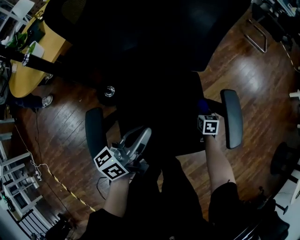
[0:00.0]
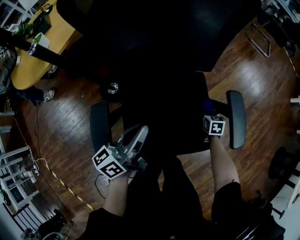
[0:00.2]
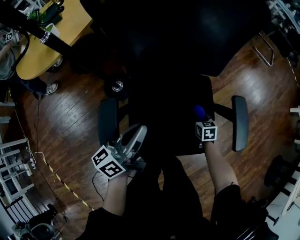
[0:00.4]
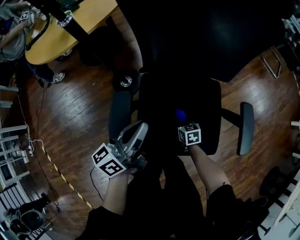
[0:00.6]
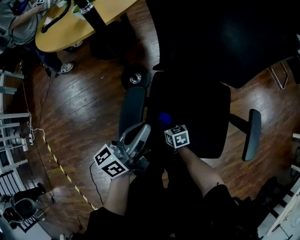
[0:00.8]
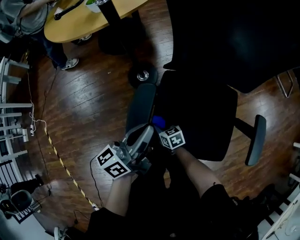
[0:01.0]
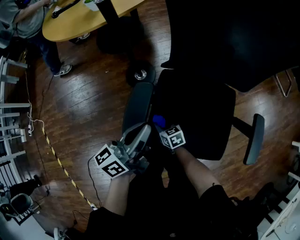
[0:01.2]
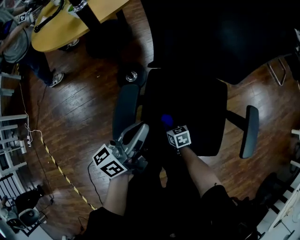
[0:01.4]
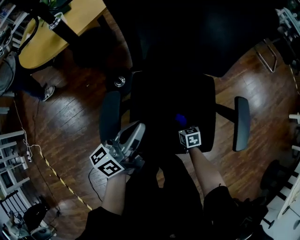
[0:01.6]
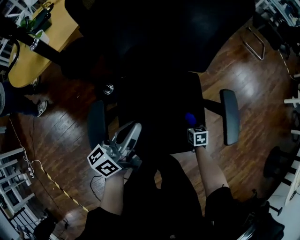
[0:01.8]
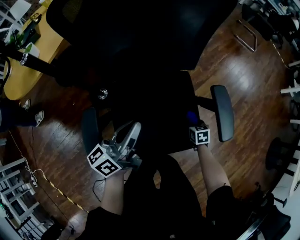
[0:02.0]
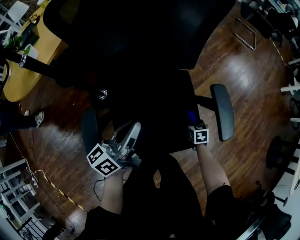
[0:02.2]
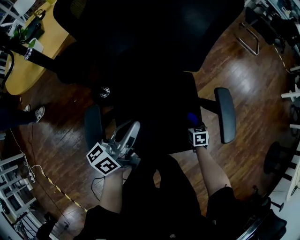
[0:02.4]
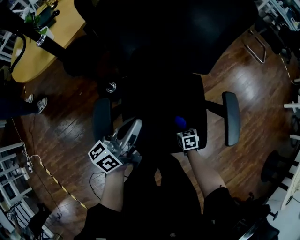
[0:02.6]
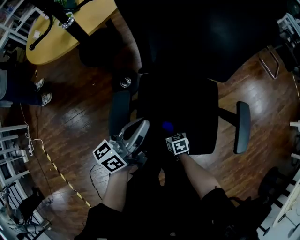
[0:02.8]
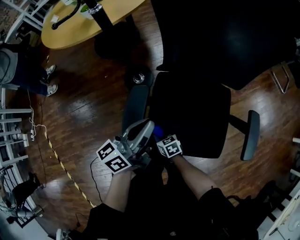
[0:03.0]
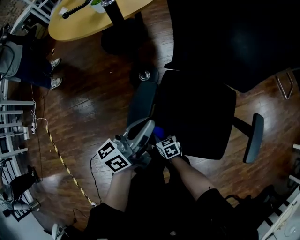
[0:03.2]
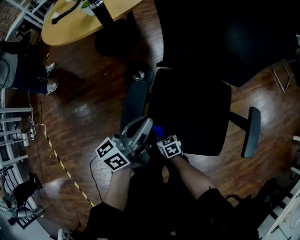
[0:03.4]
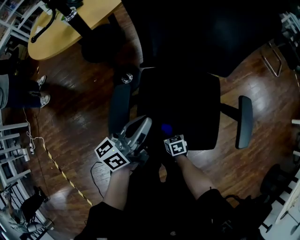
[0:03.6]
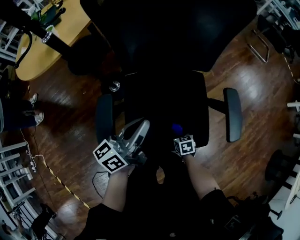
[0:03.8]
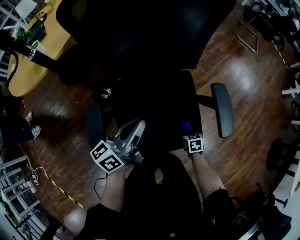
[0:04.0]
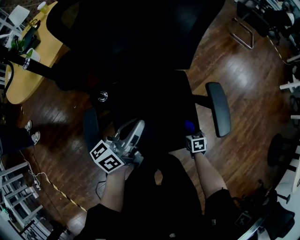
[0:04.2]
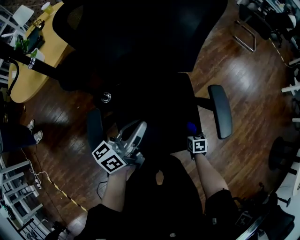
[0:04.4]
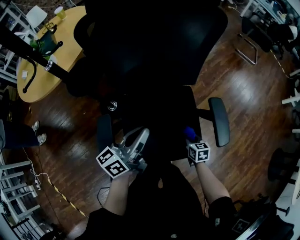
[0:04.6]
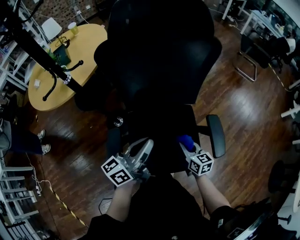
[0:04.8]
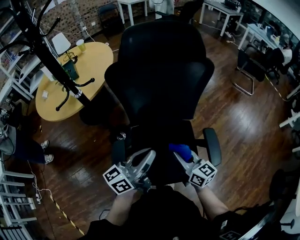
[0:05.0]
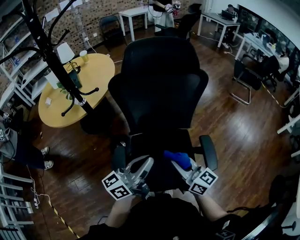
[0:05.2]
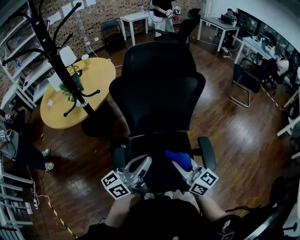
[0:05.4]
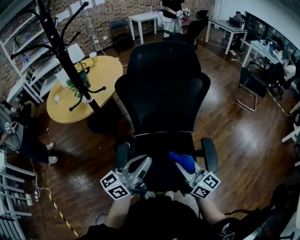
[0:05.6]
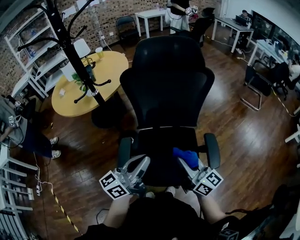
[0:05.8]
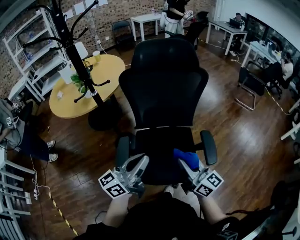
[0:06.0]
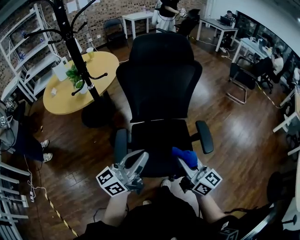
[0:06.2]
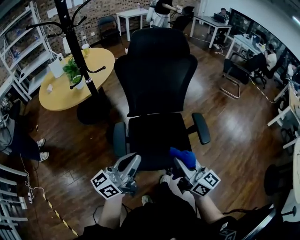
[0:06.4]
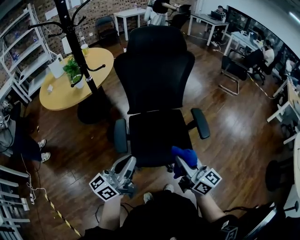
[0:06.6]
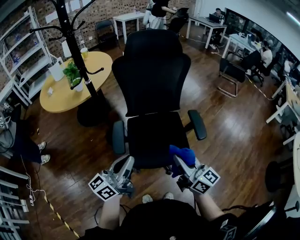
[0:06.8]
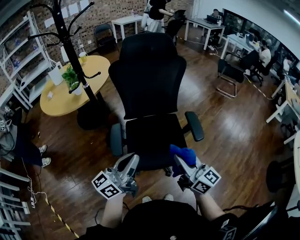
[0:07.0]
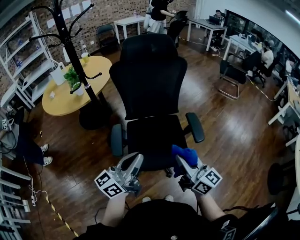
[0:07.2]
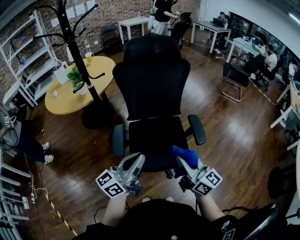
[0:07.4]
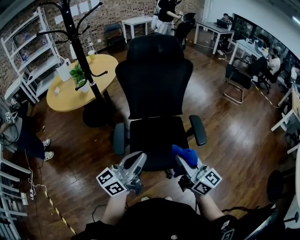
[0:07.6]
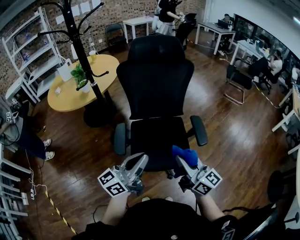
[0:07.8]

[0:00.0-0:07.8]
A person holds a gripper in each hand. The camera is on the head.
0:00.0 to 0:01.6: The right gripper rotates roughly 20 degrees.
0:01.6 to 0:03.2: The left gripper changes place by about 5 cm, while the right gripper moves some 25 cm, and swivels approximately 20 degrees.
0:03.2 to 0:04.6: The right gripper changes place by roughly 35 cm, and rotates roughly 40 degrees; the left gripper moves about 15 cm, and changes its angle by approximately 20 degrees.
0:04.6 to 0:06.2: The right gripper goes about 40 cm upward, and tilts its fingers approximately 50 degrees upward, while the left gripper travels upward and backward by about 25 cm, and rotates approximately 20 degrees.
0:06.2 to 0:07.8: Both grippers travel together backward, approximately 10 cm.

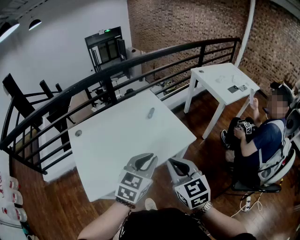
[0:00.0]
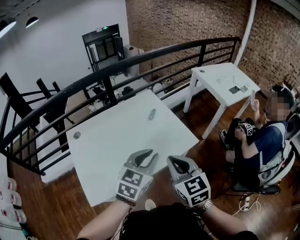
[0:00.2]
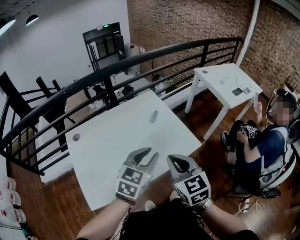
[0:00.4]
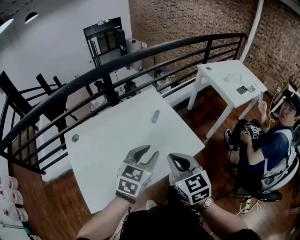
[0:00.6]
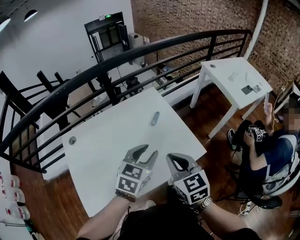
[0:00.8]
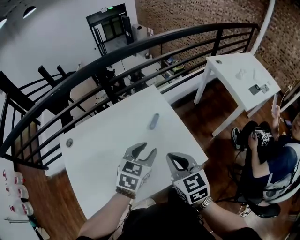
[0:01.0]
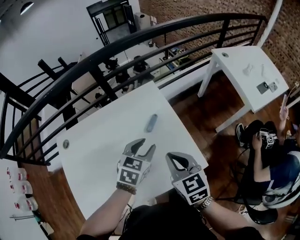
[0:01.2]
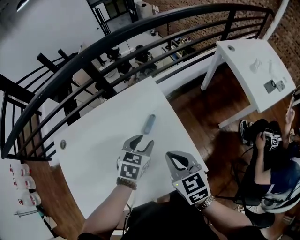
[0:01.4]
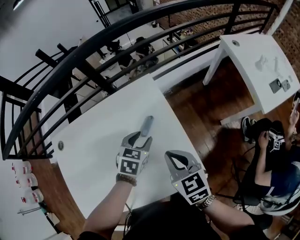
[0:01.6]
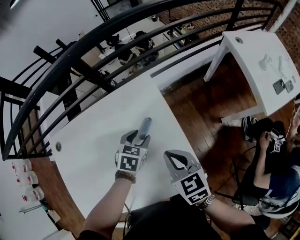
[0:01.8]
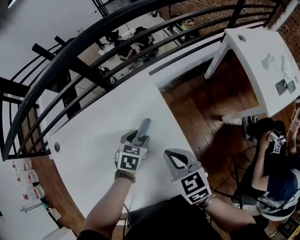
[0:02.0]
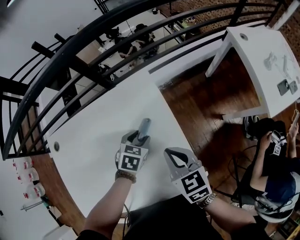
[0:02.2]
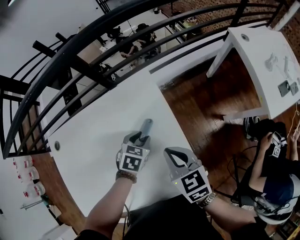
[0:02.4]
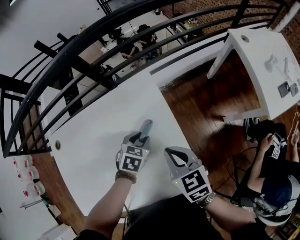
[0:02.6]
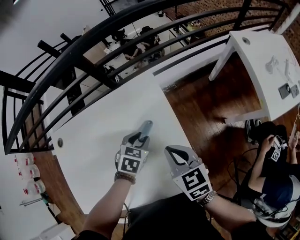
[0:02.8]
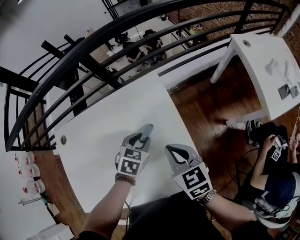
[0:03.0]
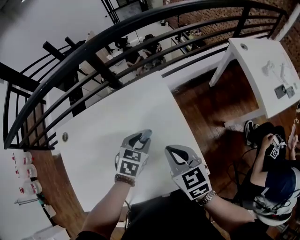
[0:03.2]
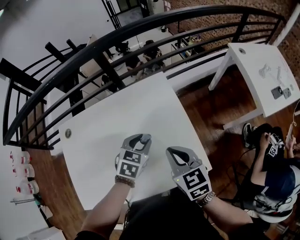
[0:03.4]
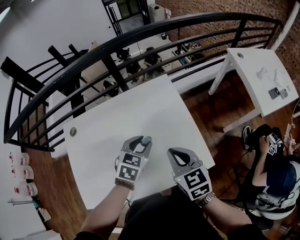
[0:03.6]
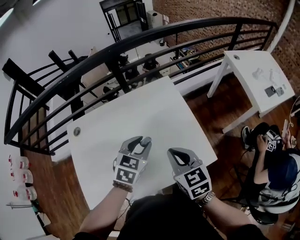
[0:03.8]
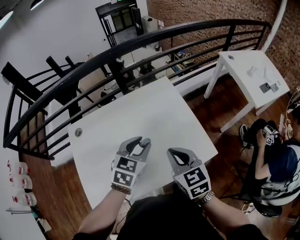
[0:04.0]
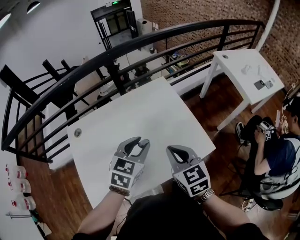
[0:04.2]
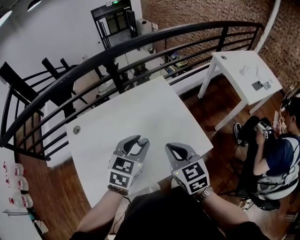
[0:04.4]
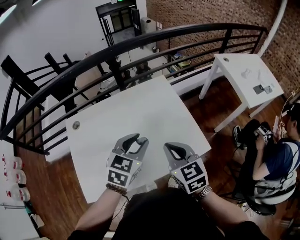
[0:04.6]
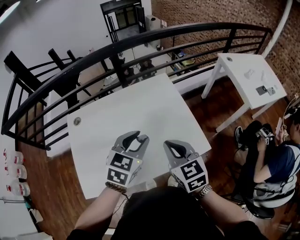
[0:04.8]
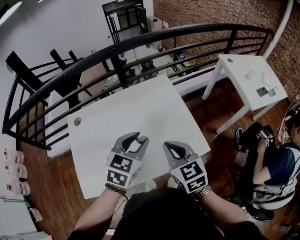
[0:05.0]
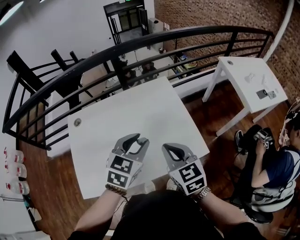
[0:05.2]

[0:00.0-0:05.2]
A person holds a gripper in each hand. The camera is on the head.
0:00.0 to 0:01.8: The two grippers go some 40 cm forward and downward. The right gripper changes its angle by some 30 degrees; the left gripper tips its fingers downward by roughly 30 degrees, and opens its fingers.
0:01.8 to 0:03.4: The left gripper moves backward and upward, approximately 10 cm. The right gripper ends up about 5 cm from where it was.
0:03.4 to 0:05.2: The left gripper shifts roughly 20 cm upward and backward; the right gripper is displaced backward, upward and to the left by about 15 cm.

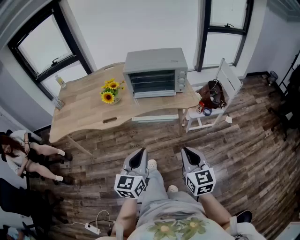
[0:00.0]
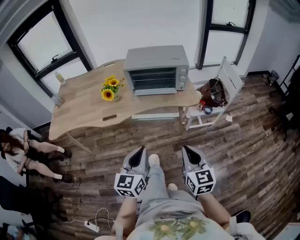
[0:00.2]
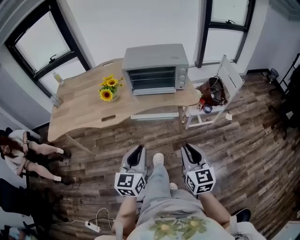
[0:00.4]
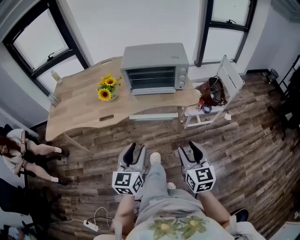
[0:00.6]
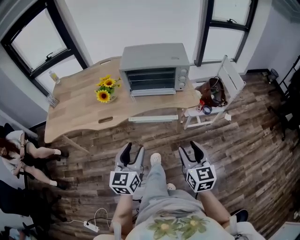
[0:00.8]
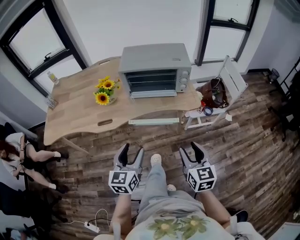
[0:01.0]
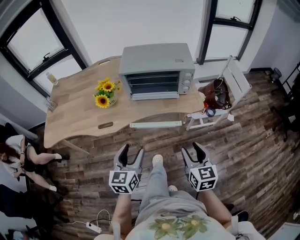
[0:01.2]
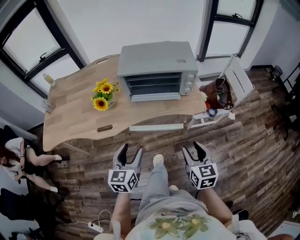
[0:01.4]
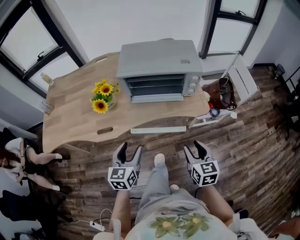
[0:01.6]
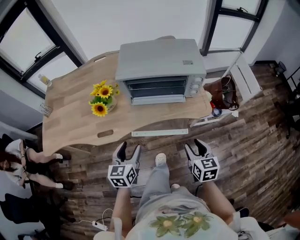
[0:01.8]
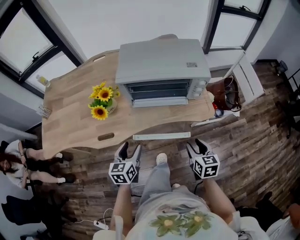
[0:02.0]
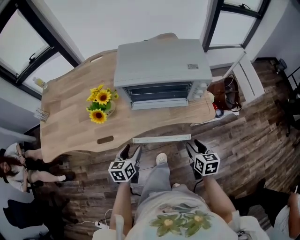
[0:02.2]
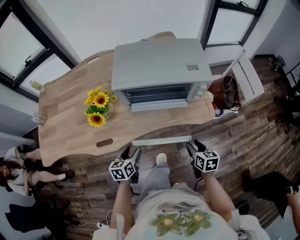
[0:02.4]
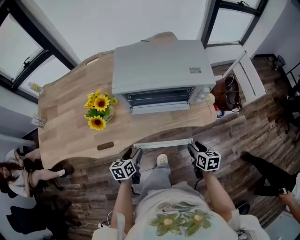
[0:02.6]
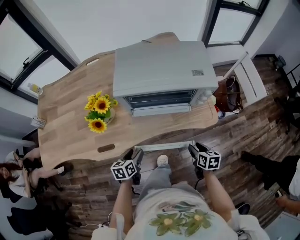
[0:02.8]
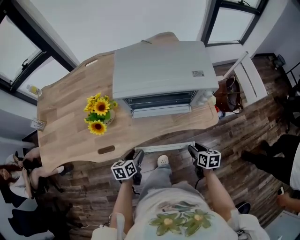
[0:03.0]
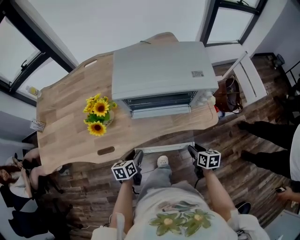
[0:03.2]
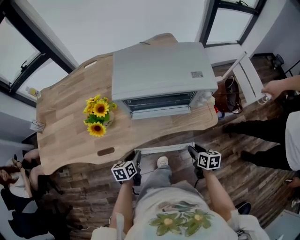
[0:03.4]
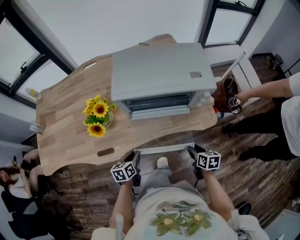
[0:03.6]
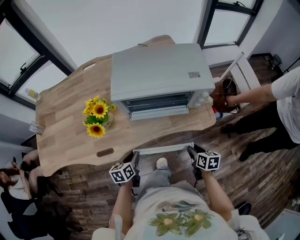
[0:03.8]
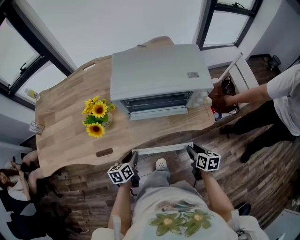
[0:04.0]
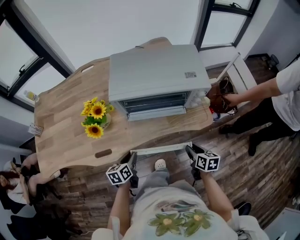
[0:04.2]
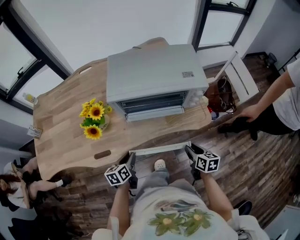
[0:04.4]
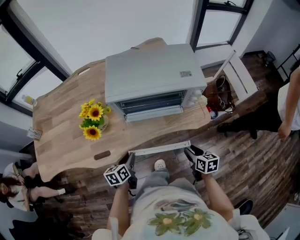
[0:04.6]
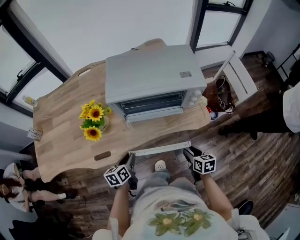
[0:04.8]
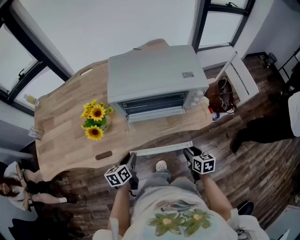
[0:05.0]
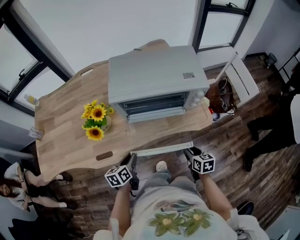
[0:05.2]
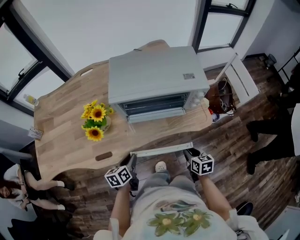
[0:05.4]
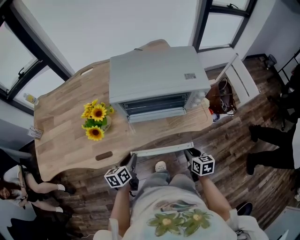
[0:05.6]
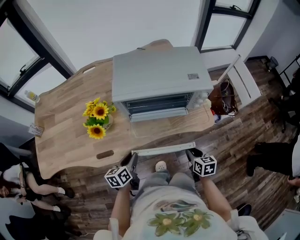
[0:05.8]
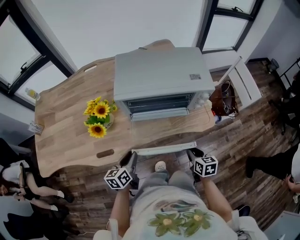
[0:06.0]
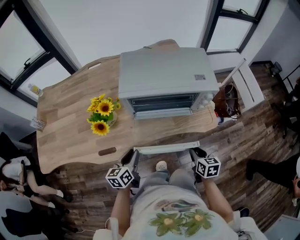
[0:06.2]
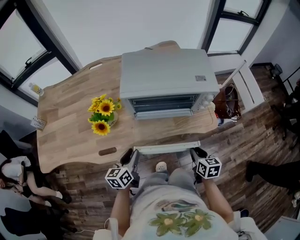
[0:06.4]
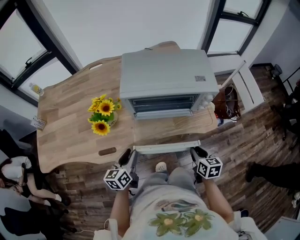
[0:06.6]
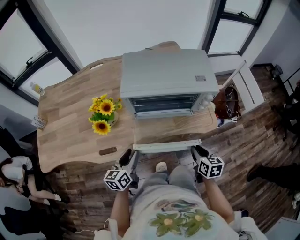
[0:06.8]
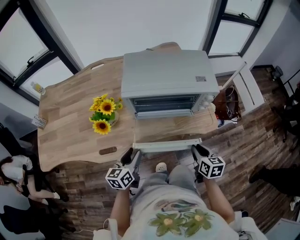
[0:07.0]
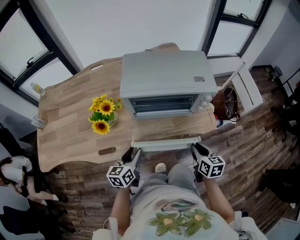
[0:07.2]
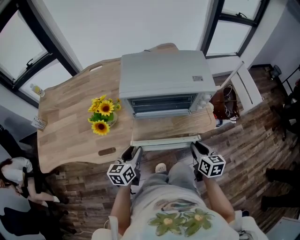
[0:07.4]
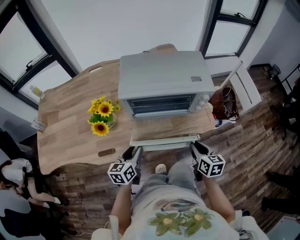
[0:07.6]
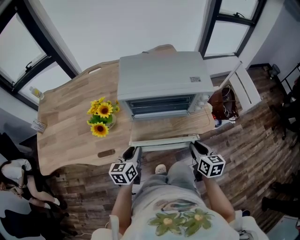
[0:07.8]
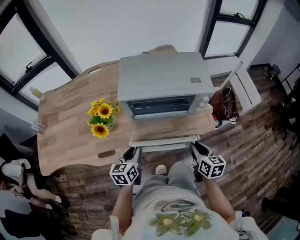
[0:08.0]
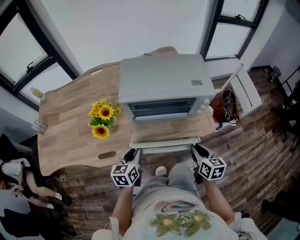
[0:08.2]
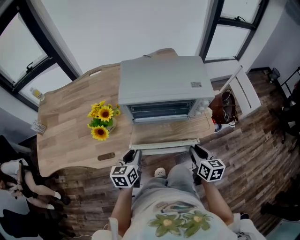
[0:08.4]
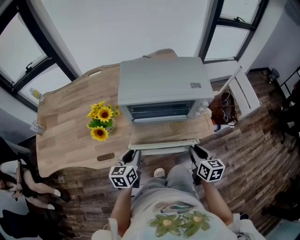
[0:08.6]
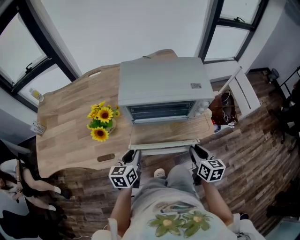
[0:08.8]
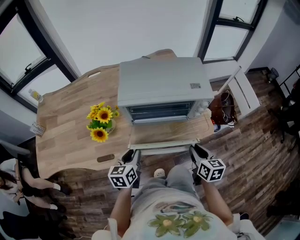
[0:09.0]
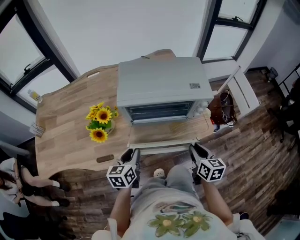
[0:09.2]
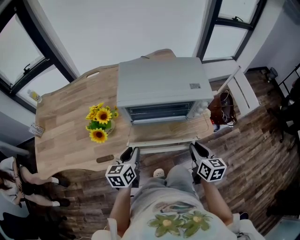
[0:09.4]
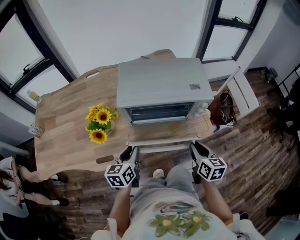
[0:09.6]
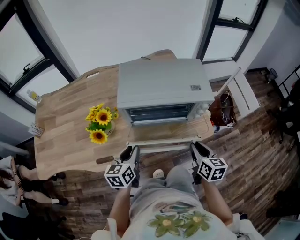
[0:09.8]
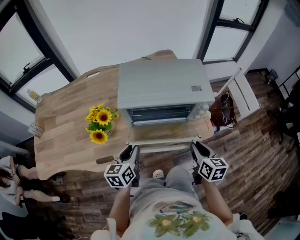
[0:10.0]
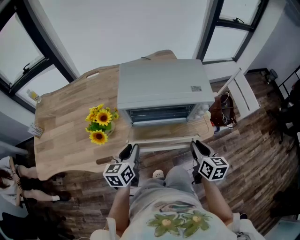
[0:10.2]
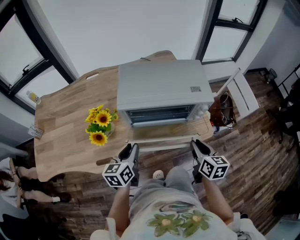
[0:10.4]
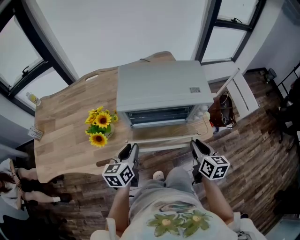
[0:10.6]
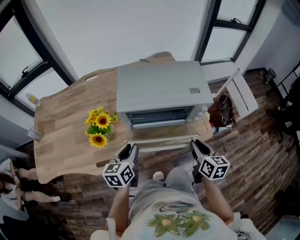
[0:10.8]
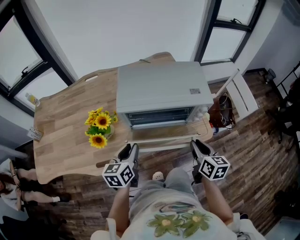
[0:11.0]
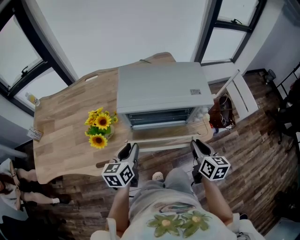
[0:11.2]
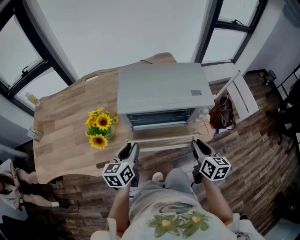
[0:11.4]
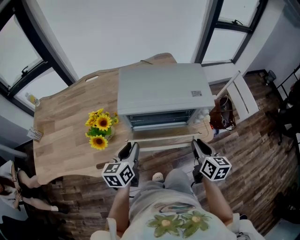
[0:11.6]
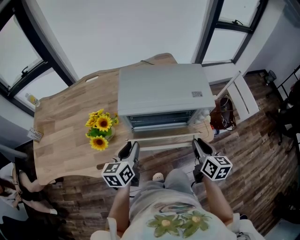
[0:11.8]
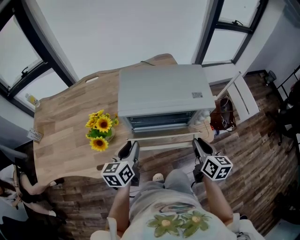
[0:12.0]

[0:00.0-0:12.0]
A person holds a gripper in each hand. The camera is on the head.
0:00.0 to 0:01.6: Both grippers move forward and downward, some 20 cm. The right gripper opens. The left gripper opens its fingers.
0:01.6 to 0:03.0: Both grippers travel together downward and forward, about 20 cm. The right gripper turns by about 30 degrees; the left gripper changes its angle by about 30 degrees.
0:03.0 to 0:04.4: The left gripper closes.
0:04.4 to 0:06.0: The grippers make only small movements.
0:06.0 to 0:07.6: The left gripper changes place by about 5 cm; the right gripper is displaced upward by approximately 10 cm.
0:07.6 to 0:09.0: There are only small adjustments of the grippers.
0:09.0 to 0:10.4: The left gripper shifts by approximately 5 cm, while the right gripper shifts by roughly 5 cm.
0:10.4 to 0:12.0: There are only small adjustments of the grippers.
